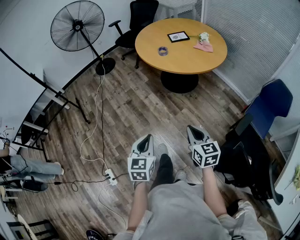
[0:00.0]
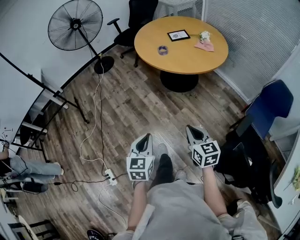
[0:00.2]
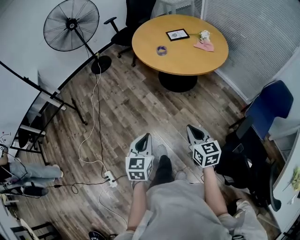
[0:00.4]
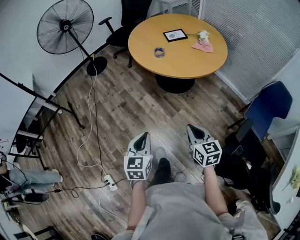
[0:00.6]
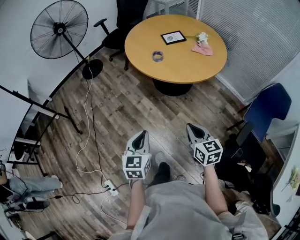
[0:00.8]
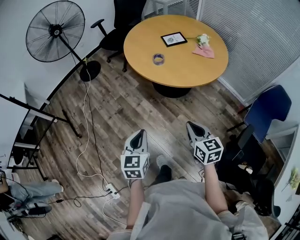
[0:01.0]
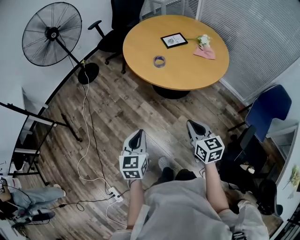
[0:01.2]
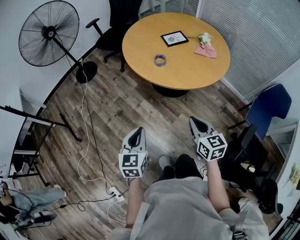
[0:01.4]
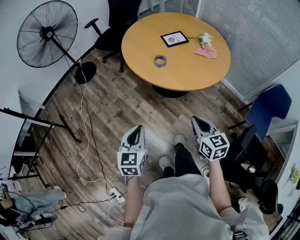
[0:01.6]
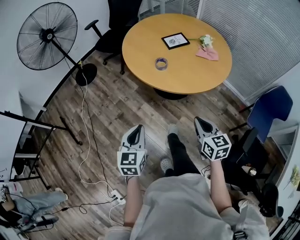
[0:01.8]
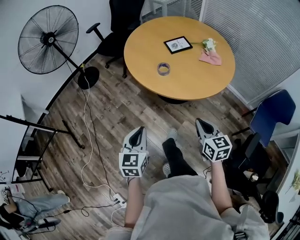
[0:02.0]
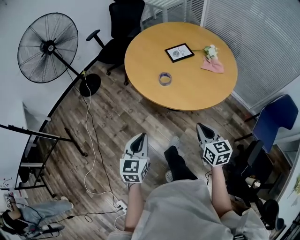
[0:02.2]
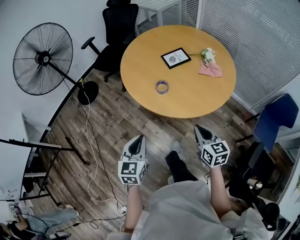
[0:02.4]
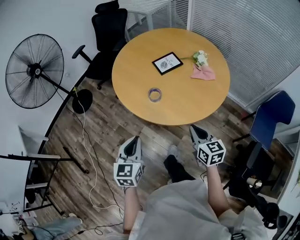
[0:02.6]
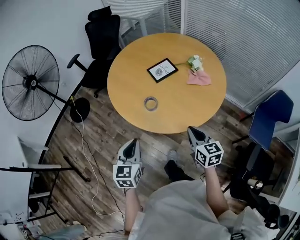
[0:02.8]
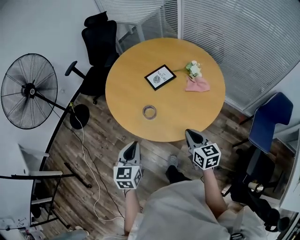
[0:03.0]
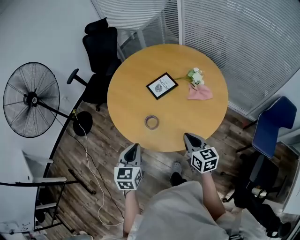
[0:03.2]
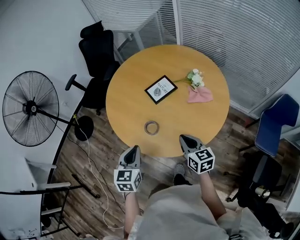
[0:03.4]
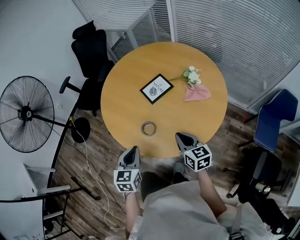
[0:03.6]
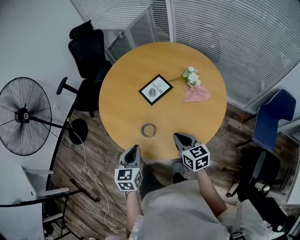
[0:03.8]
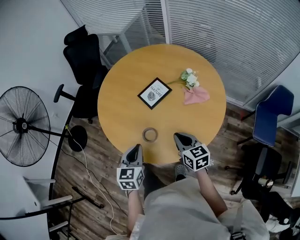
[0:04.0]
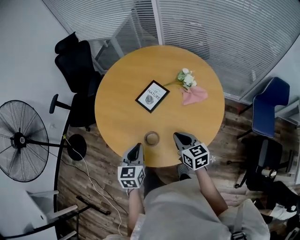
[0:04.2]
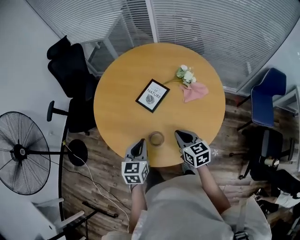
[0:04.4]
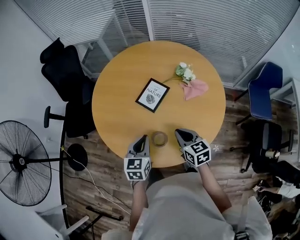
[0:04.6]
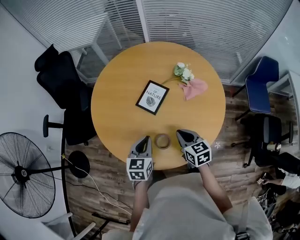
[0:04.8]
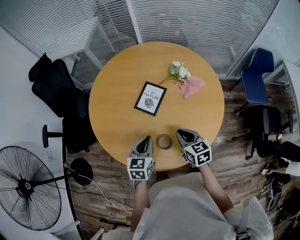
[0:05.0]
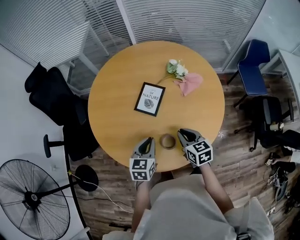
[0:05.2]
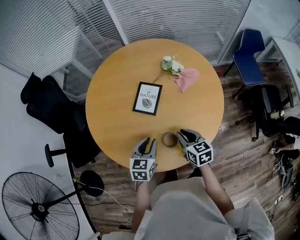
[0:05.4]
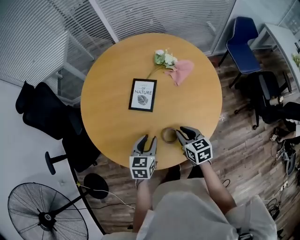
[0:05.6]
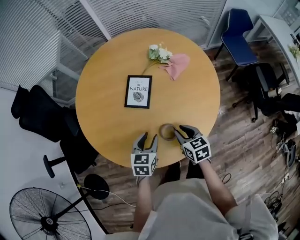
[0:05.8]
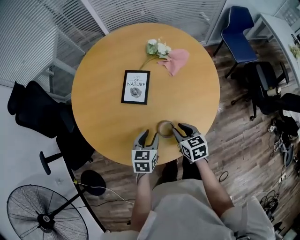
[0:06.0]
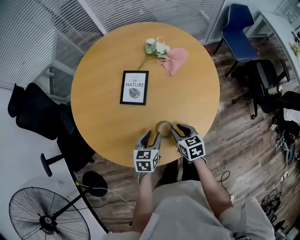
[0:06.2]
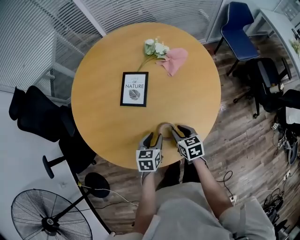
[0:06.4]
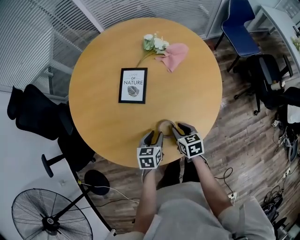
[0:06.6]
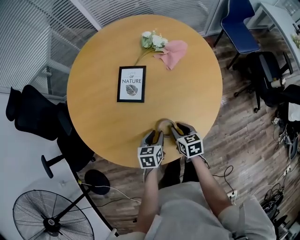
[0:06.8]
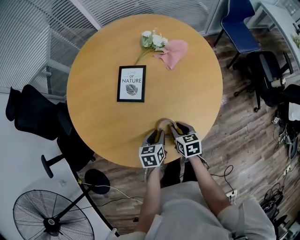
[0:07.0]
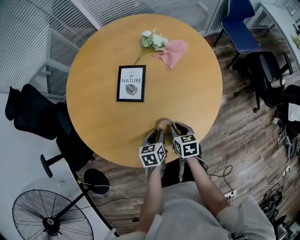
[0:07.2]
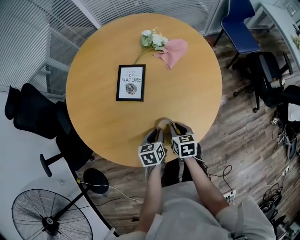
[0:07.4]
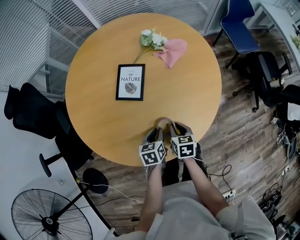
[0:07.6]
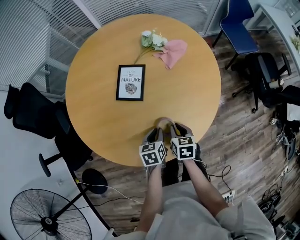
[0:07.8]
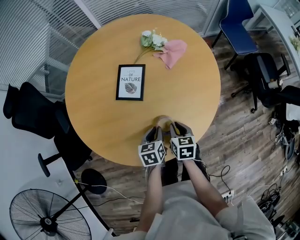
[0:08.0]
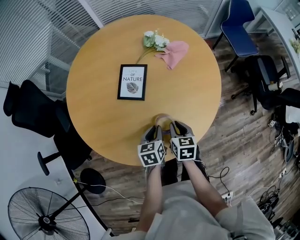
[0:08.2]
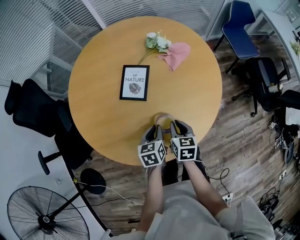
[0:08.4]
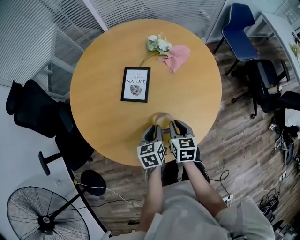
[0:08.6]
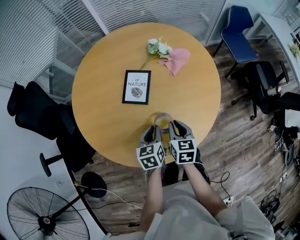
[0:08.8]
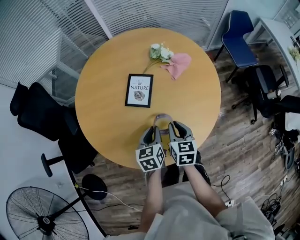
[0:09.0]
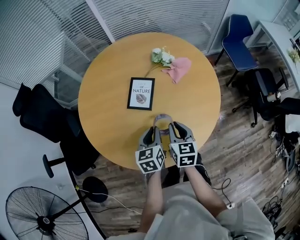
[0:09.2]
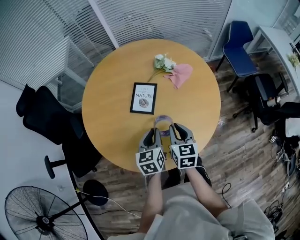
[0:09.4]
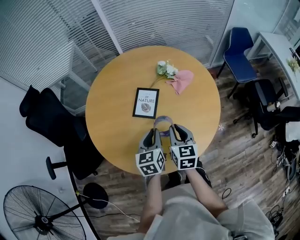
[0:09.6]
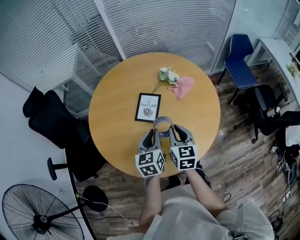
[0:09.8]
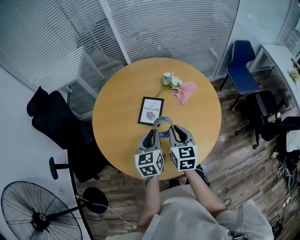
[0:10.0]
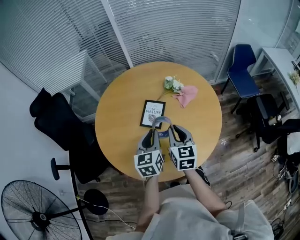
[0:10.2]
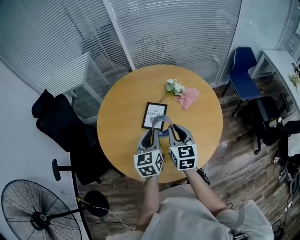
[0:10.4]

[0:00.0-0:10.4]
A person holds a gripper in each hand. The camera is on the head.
0:00.0 to 0:01.4: Both grippers travel together forward, some 30 cm.
0:01.4 to 0:03.0: The two grippers go some 30 cm forward.
0:03.0 to 0:04.4: The right gripper heads forward and to the left, covering roughly 20 cm; the left gripper shifts roughly 25 cm forward, and changes its angle by approximately 20 degrees.
0:04.4 to 0:06.0: Both grippers travel together downward, approximately 10 cm. The right gripper turns by approximately 30 degrees, and opens, while the left gripper turns by approximately 40 degrees, and opens its fingers.
0:06.0 to 0:07.4: Both grippers move downward, roughly 10 cm.
0:07.4 to 0:09.0: Both grippers travel together upward, about 10 cm.
0:09.0 to 0:10.4: The grippers both shift upward by some 15 cm. The left gripper rotates about 20 degrees.

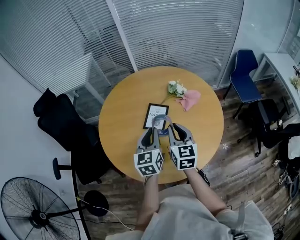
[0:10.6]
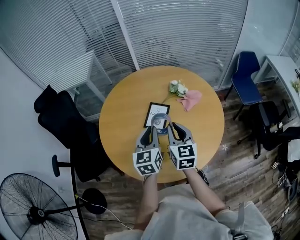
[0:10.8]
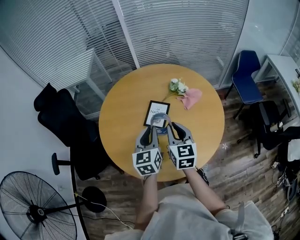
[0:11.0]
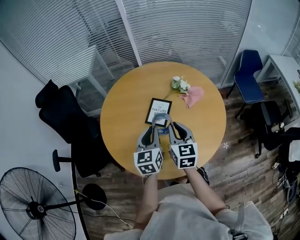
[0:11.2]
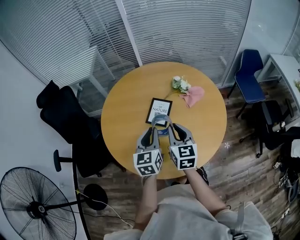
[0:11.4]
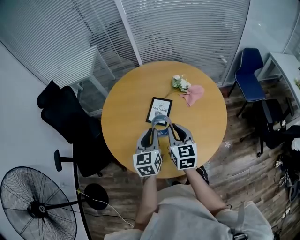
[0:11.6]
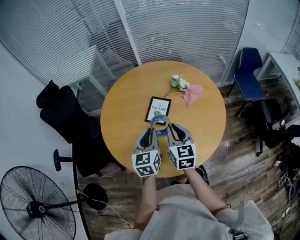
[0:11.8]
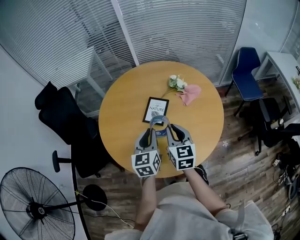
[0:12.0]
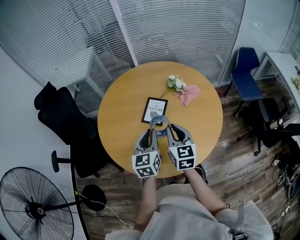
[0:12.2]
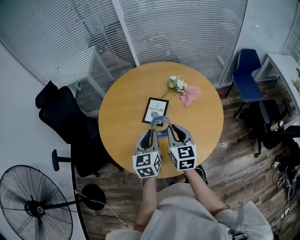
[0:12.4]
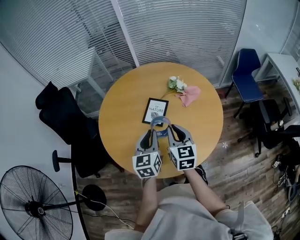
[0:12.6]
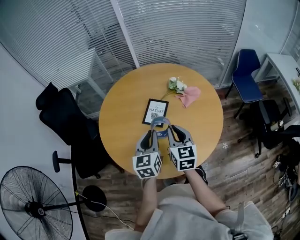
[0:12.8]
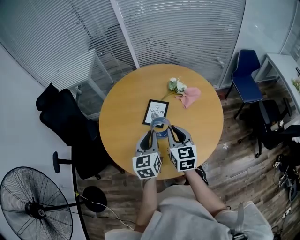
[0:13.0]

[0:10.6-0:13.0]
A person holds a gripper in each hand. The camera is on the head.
0:10.6 to 0:13.0: There are only small adjustments of the grippers.

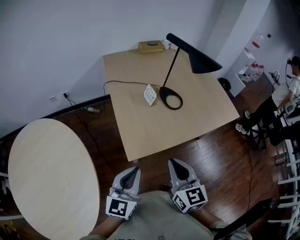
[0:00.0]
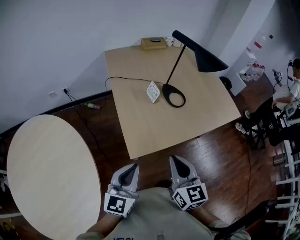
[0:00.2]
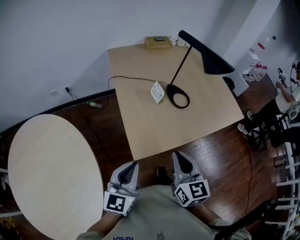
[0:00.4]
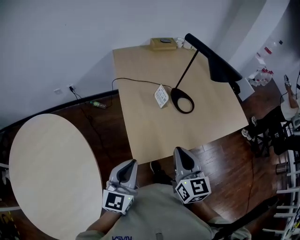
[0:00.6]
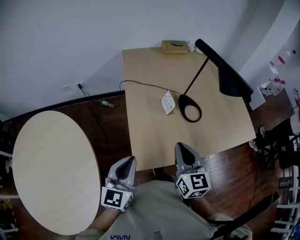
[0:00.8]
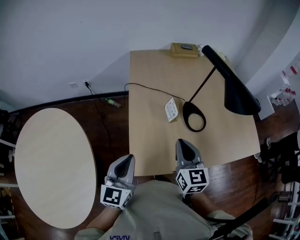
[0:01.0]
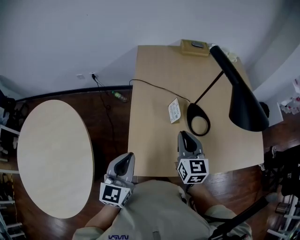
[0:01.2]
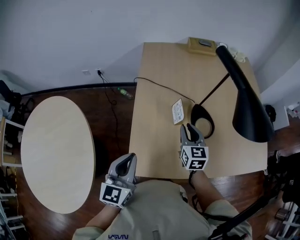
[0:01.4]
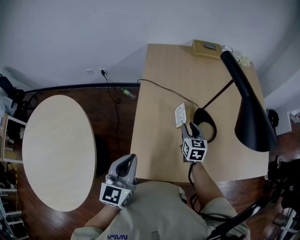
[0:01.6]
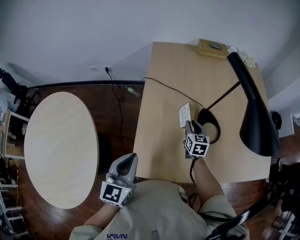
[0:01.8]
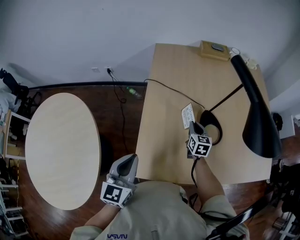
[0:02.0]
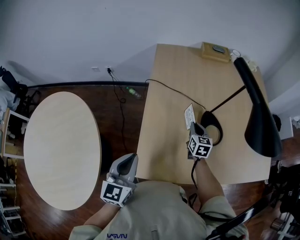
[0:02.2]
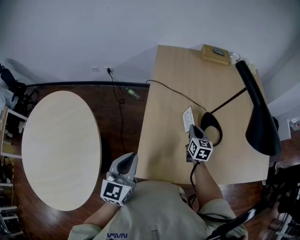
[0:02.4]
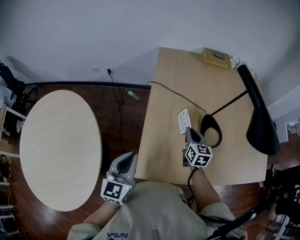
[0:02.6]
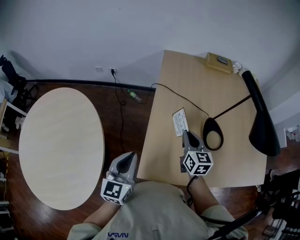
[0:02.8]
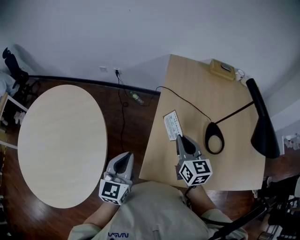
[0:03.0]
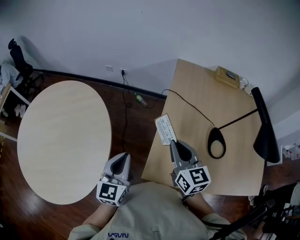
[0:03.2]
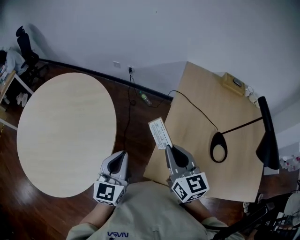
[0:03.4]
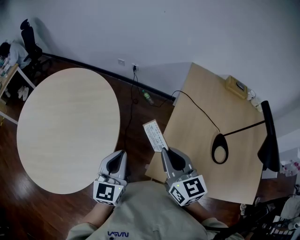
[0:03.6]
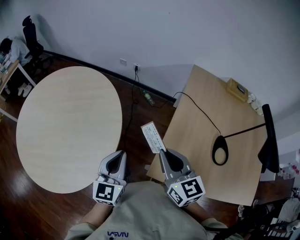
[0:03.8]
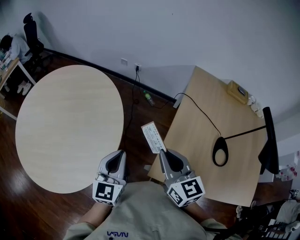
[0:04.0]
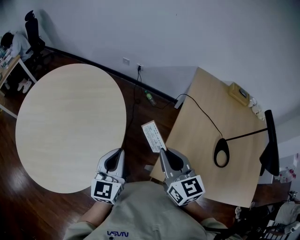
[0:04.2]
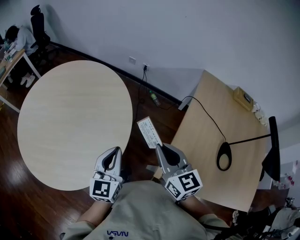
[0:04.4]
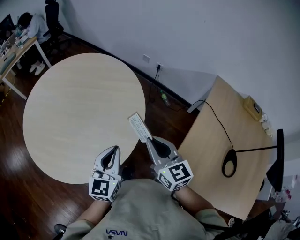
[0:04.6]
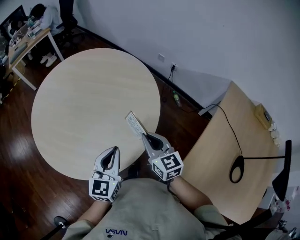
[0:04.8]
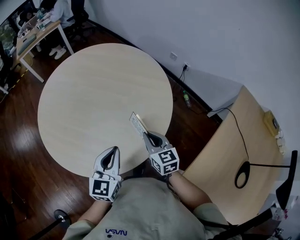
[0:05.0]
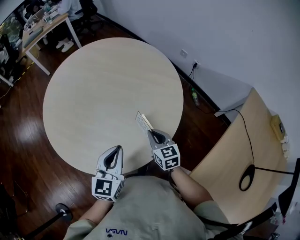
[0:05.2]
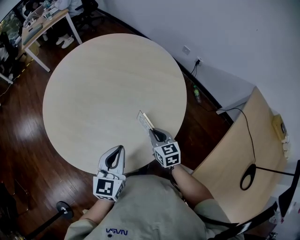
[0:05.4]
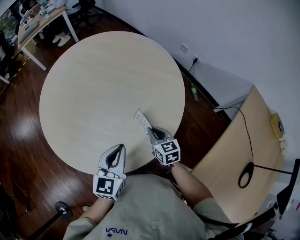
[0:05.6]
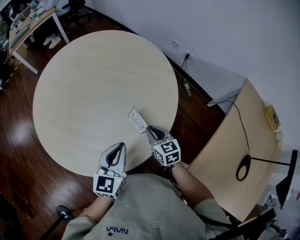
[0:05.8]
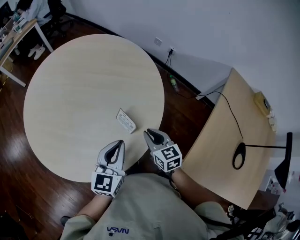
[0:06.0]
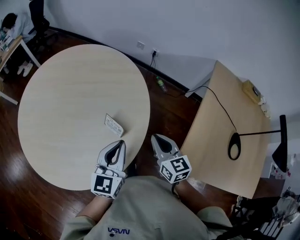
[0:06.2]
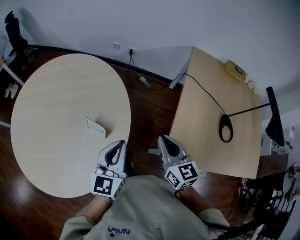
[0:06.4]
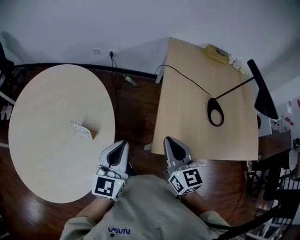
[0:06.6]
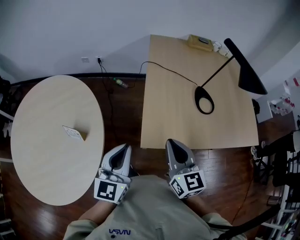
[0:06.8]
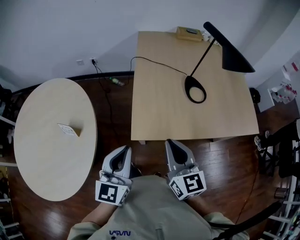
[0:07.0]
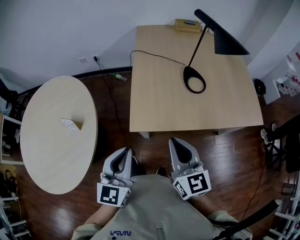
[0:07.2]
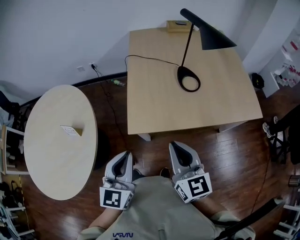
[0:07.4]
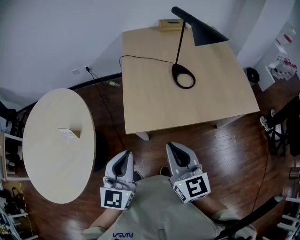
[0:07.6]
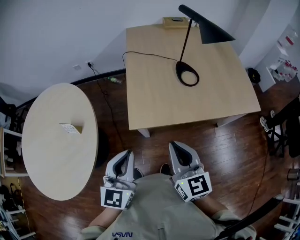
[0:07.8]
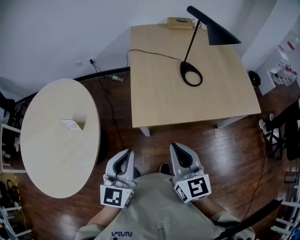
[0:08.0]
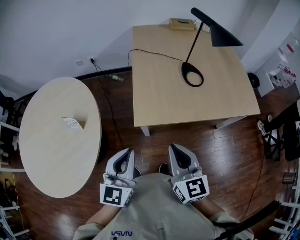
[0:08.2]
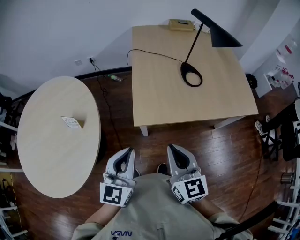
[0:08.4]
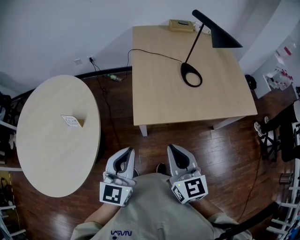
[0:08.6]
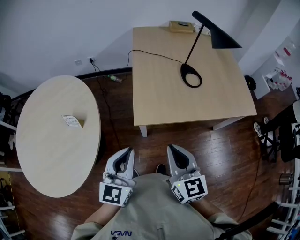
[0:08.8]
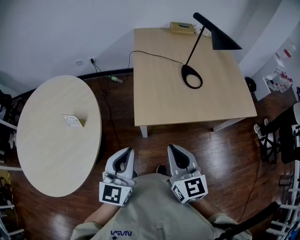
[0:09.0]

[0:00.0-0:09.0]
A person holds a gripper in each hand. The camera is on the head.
0:00.0 to 0:01.6: The right gripper travels forward and downward by some 50 cm, and opens up, while the left gripper travels forward by about 20 cm, and changes its angle by about 30 degrees.
0:01.6 to 0:03.0: The left gripper is displaced to the left by about 15 cm. Meanwhile the right gripper travels to the left, upward and backward by some 25 cm, turns by approximately 20 degrees, and closes up.
0:03.0 to 0:04.4: Both grippers move to the left, some 25 cm. The right gripper swivels roughly 30 degrees.
0:04.4 to 0:06.0: The right gripper is displaced downward, to the left and forward by roughly 30 cm, and changes its angle by roughly 20 degrees. Meanwhile the left gripper shifts approximately 15 cm to the left and forward.
0:06.0 to 0:07.6: The pair of grippers is taken about 50 cm. The left gripper changes its angle by about 40 degrees. The right gripper swivels some 60 degrees.
0:07.6 to 0:09.0: The grippers both shift to the left by about 5 cm.

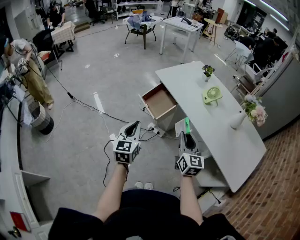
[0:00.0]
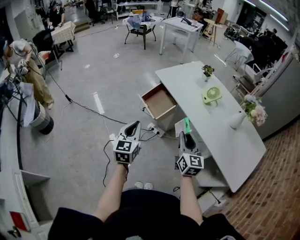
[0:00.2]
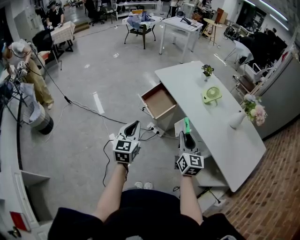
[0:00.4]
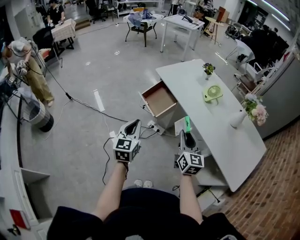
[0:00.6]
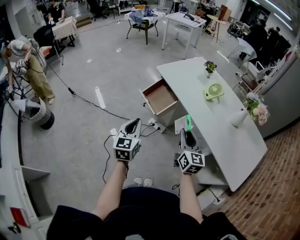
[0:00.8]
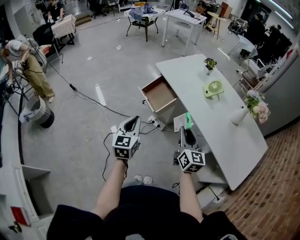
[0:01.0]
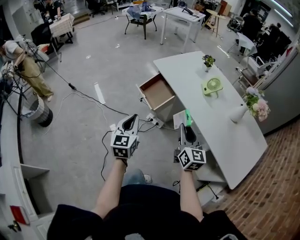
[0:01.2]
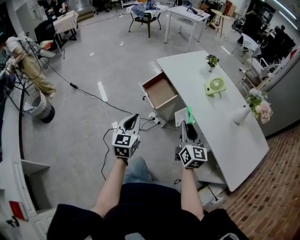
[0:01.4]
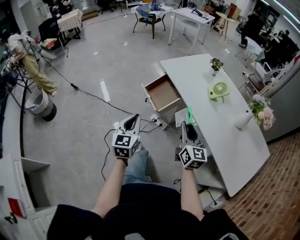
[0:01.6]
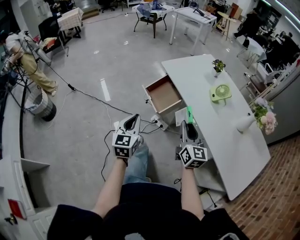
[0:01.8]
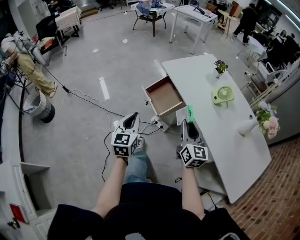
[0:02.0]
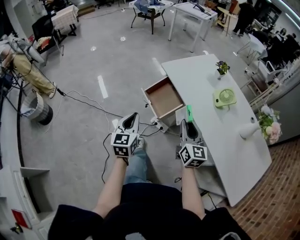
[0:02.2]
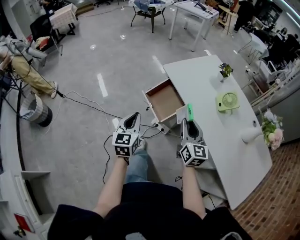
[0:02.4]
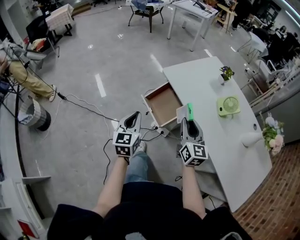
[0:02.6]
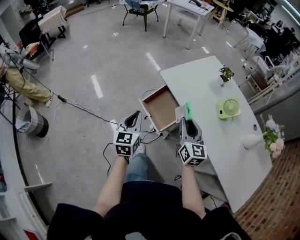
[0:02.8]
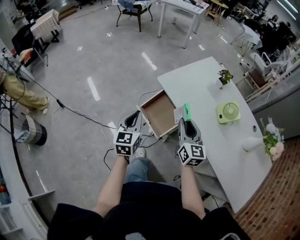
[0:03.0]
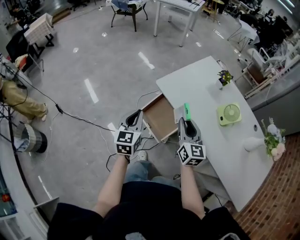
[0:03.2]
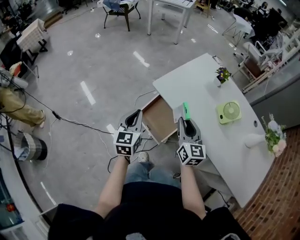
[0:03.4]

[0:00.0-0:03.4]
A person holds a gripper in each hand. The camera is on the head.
0:00.0 to 0:01.6: The grippers stay close to where they were, moving slightly.
0:01.6 to 0:03.4: The grippers both shift forward by roughly 40 cm.
